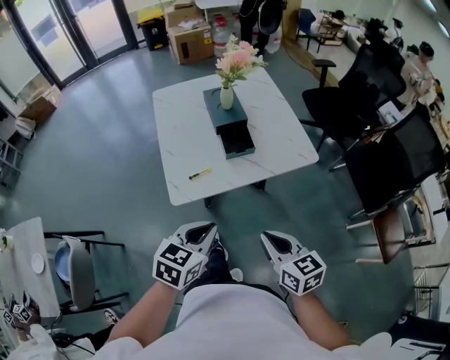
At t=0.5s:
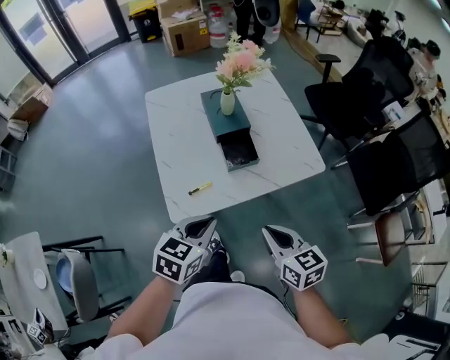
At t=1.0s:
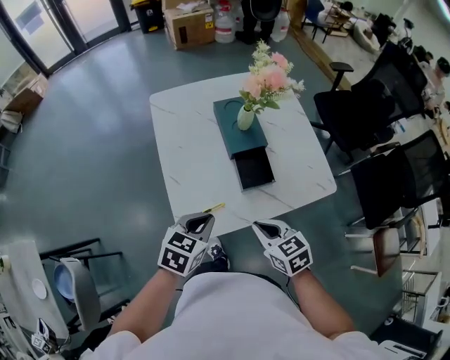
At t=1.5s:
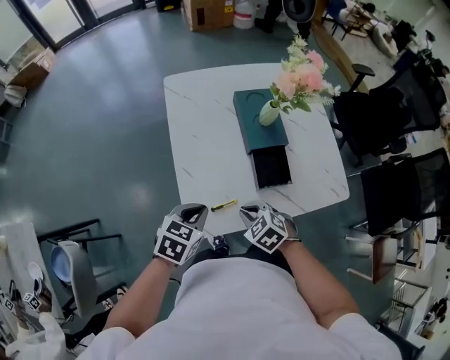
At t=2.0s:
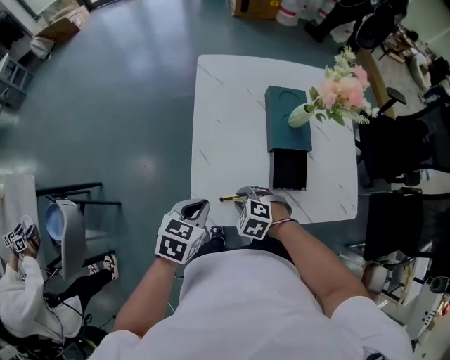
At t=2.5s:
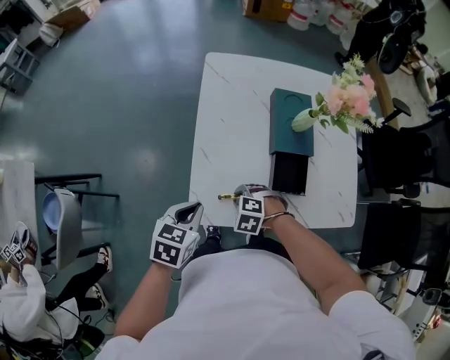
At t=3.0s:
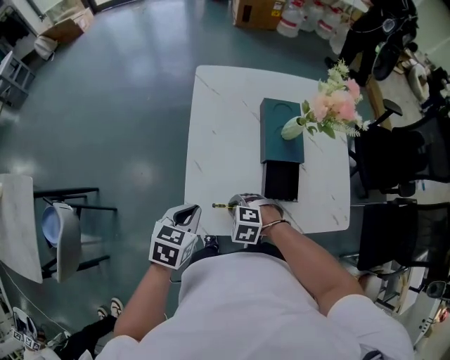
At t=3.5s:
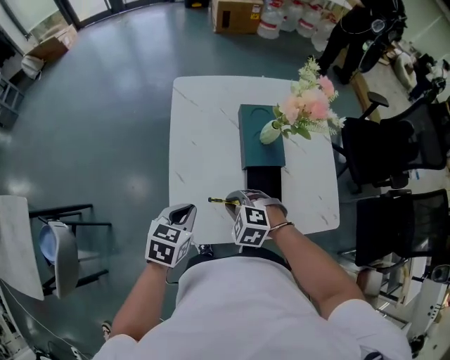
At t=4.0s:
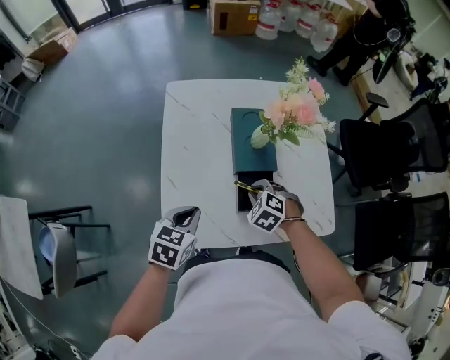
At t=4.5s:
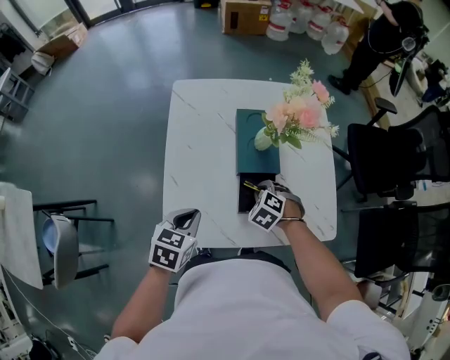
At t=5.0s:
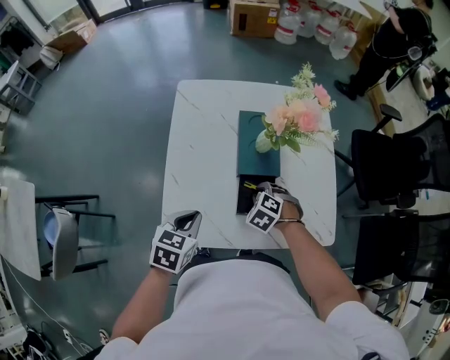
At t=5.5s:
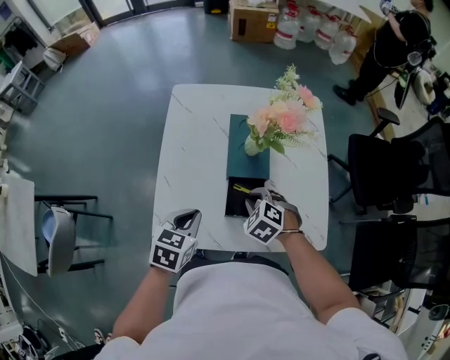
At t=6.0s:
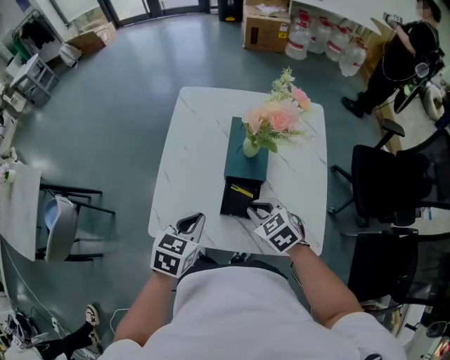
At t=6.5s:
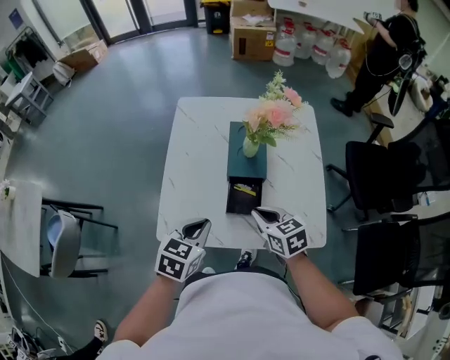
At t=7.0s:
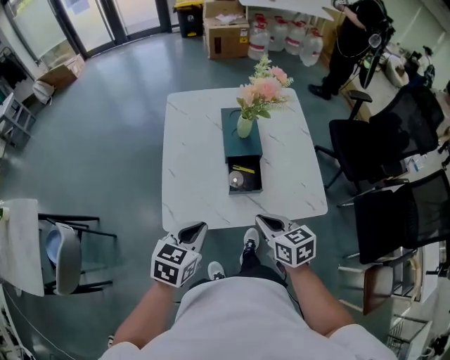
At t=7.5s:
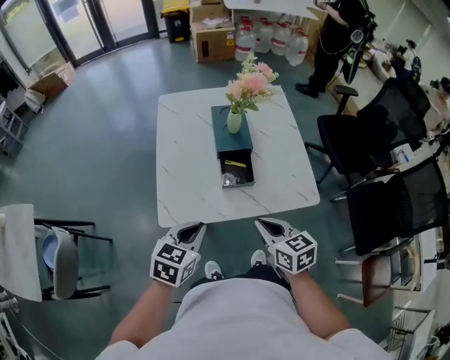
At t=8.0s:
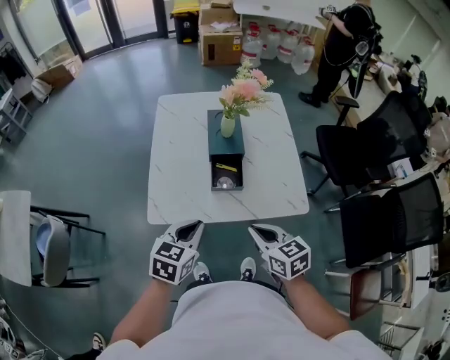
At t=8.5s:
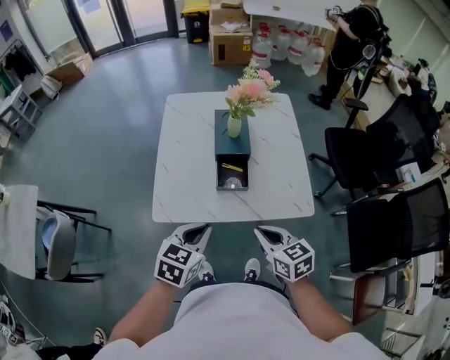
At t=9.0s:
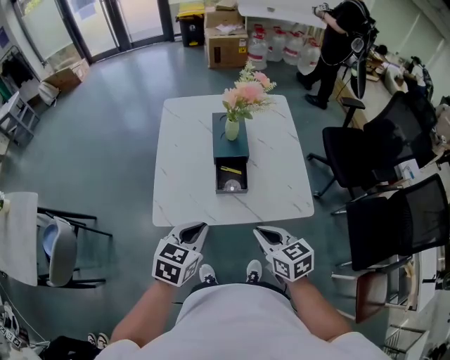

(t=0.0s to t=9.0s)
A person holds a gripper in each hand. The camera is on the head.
t=0.0s - t=2.0s: The right gripper changes place by roughly 40 cm, tilts its fingers about 50 degrees downward, and opens its fingers. The left gripper ends up roughly 30 cm from where it was, and swivels roughly 20 degrees.
t=2.0s - t=4.5s: The left gripper shifts by some 10 cm. Meanwhile the right gripper travels upward and back again, approximately 5 cm each way.
t=4.5s - t=7.0s: The right gripper moves backward and upward, about 25 cm, and points its fingers about 40 degrees further upward. Meanwhile the left gripper travels backward and upward by roughly 15 cm.
t=7.0s - t=9.0s: The left gripper is displaced to the right by roughly 5 cm. The right gripper moves backward, some 5 cm.

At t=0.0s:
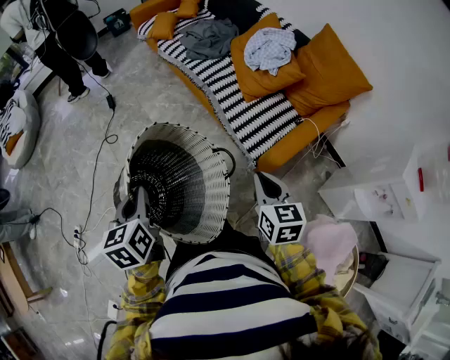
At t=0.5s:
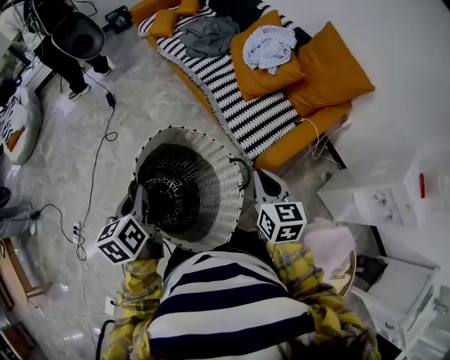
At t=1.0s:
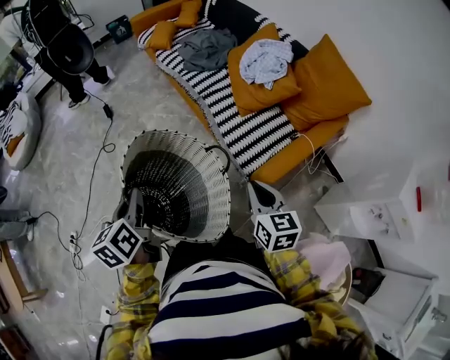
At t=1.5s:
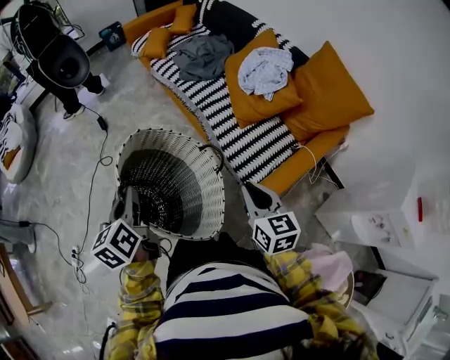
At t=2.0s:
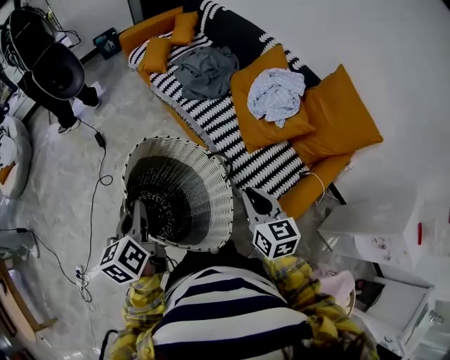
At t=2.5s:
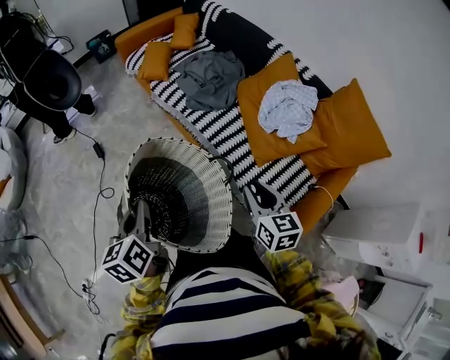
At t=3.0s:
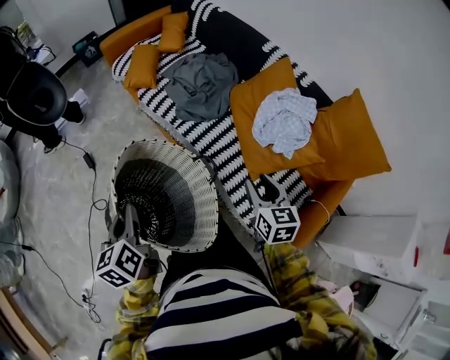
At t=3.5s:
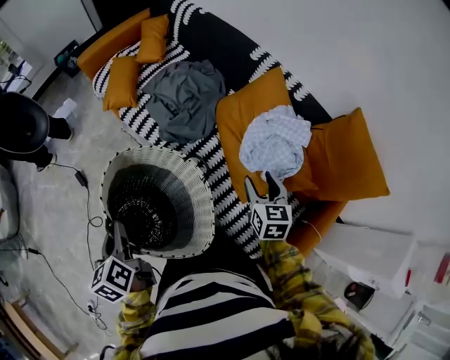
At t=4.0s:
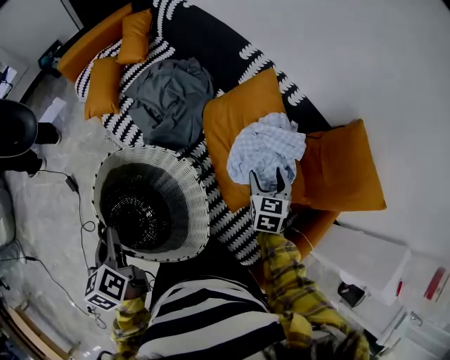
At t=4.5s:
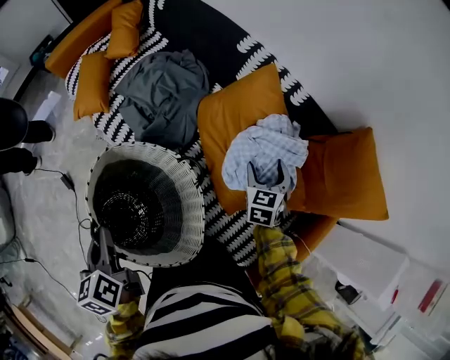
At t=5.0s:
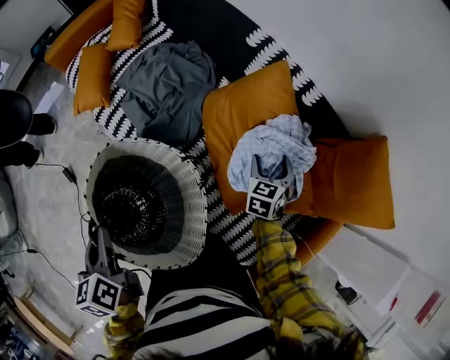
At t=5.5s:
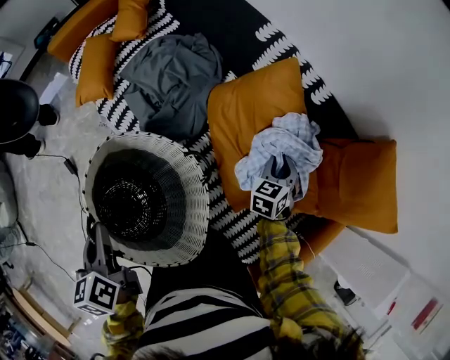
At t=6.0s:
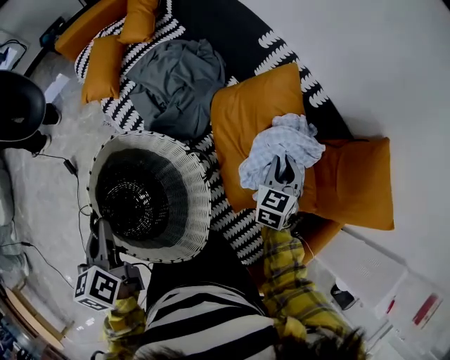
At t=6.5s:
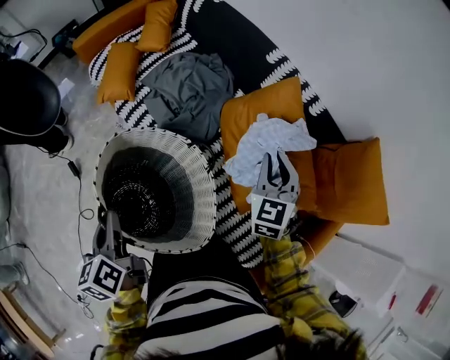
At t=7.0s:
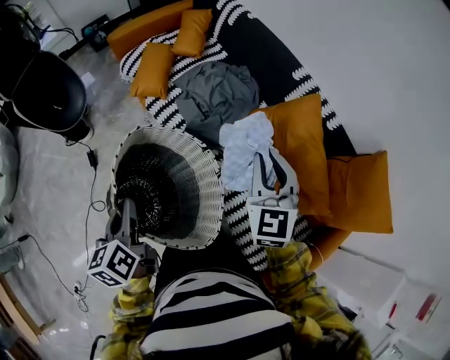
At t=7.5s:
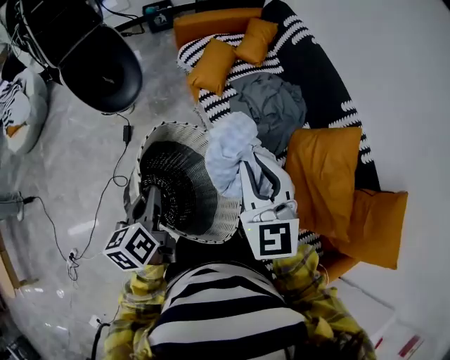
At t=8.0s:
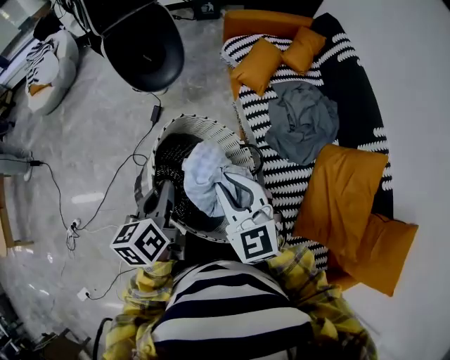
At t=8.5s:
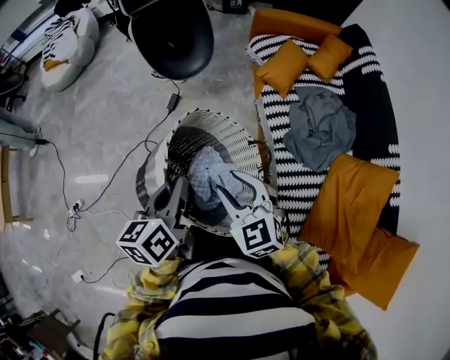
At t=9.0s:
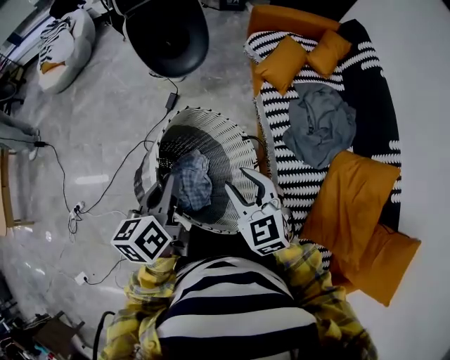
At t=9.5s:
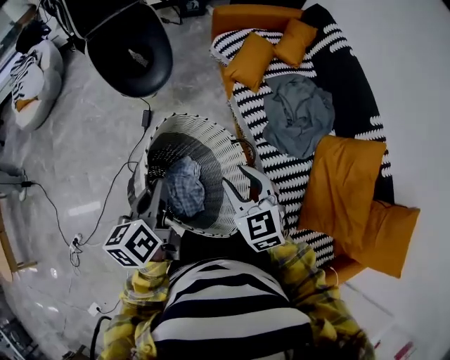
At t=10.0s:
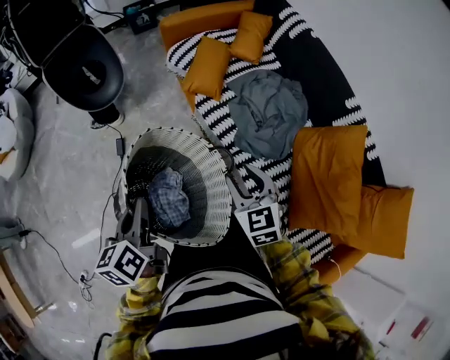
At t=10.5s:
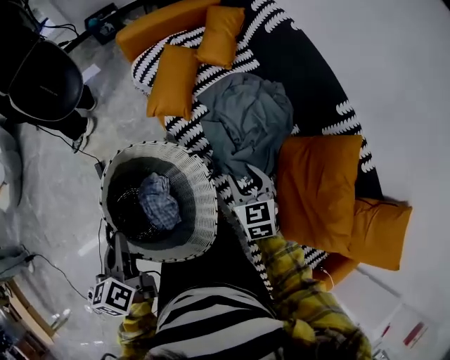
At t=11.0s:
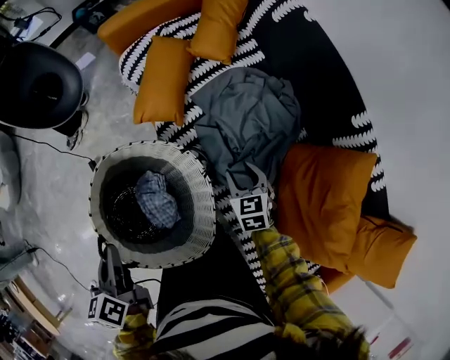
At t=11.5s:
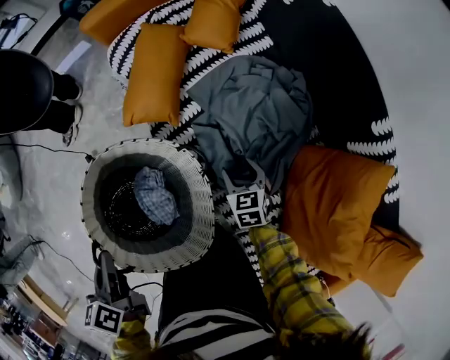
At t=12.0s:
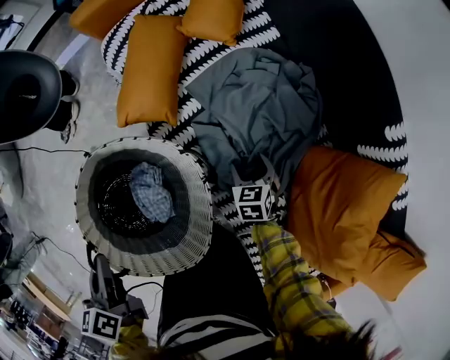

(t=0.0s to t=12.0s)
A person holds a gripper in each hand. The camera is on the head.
t=0.0s - t=2.0s: Both grippers move forward, approximately 20 cm.
t=2.0s - t=4.0s: The right gripper shifts approximately 40 cm forward and to the right, rotates roughly 40 degrees, and opens its fingers. Meanwhile the left gripper heads forward, covering some 35 cm.
t=4.0s - t=6.0s: The right gripper heads forward, covering roughly 5 cm, goes downward and returns, approximately 10 cm each way, and closes.
t=6.0s - t=8.0s: The right gripper moves some 60 cm, and changes its angle by roughly 80 degrees, while the left gripper moves approximately 20 cm, and turns by approximately 20 degrees.
t=8.0s - t=10.0s: The left gripper moves forward, about 10 cm. Meanwhile the right gripper heads to the right, downward and forward, covering about 15 cm, and changes its angle by some 30 degrees.
t=10.0s - t=12.0s: The right gripper travels downward, to the right and forward by approximately 40 cm, swivels about 30 degrees, and opens; the left gripper moves forward, to the right and downward, roughly 20 cm, and rotates some 20 degrees.

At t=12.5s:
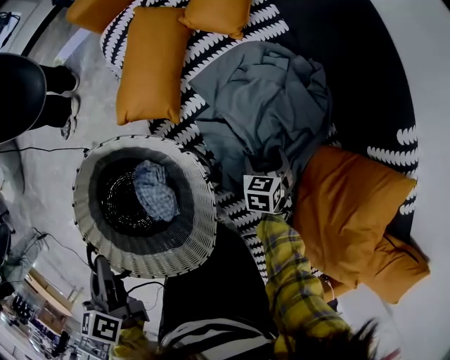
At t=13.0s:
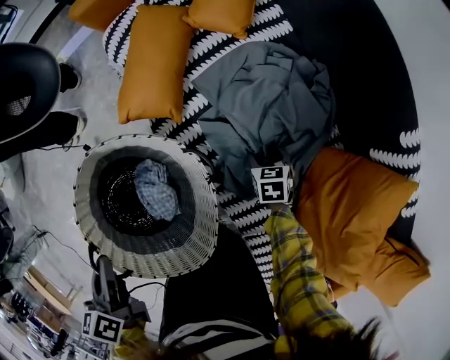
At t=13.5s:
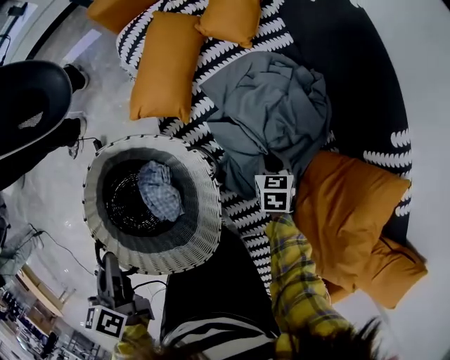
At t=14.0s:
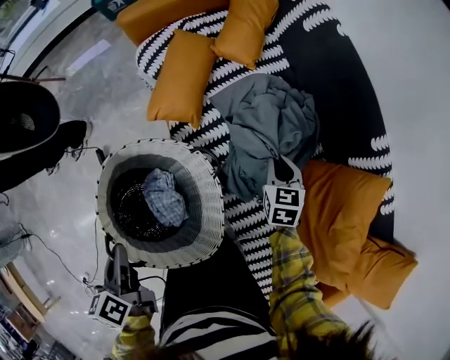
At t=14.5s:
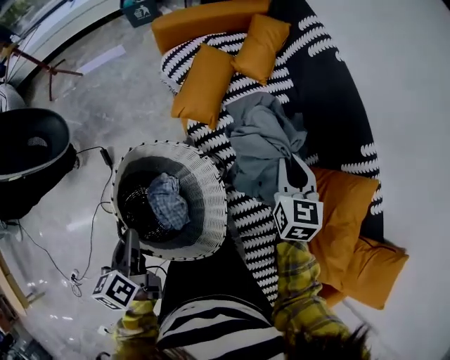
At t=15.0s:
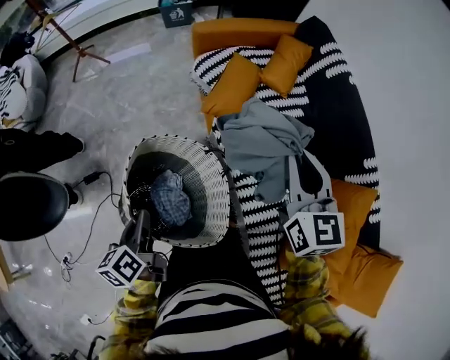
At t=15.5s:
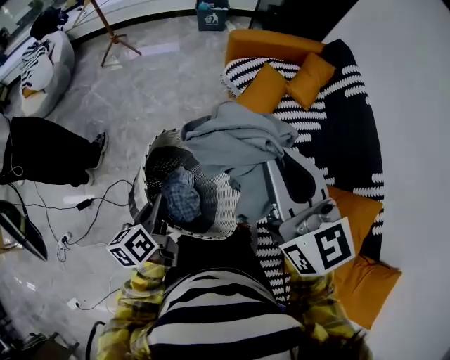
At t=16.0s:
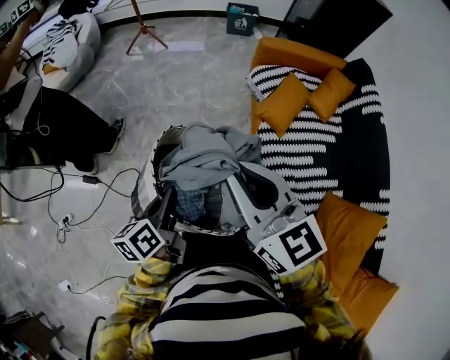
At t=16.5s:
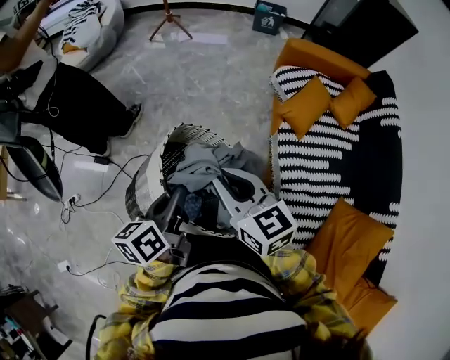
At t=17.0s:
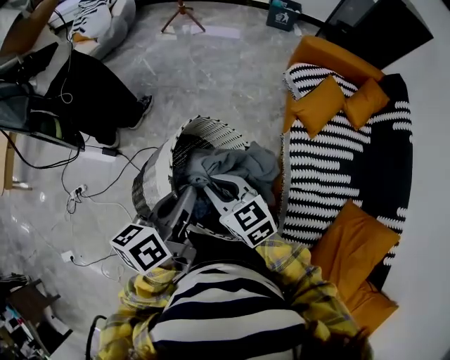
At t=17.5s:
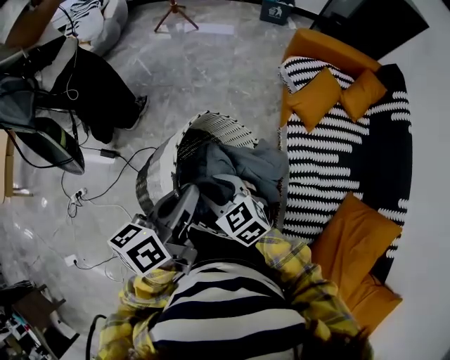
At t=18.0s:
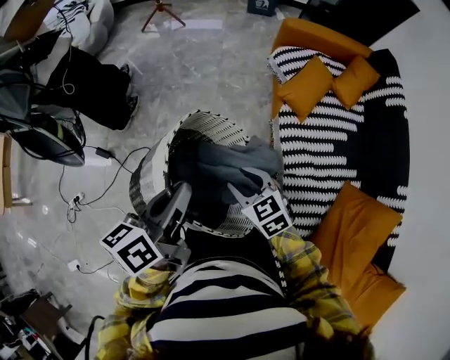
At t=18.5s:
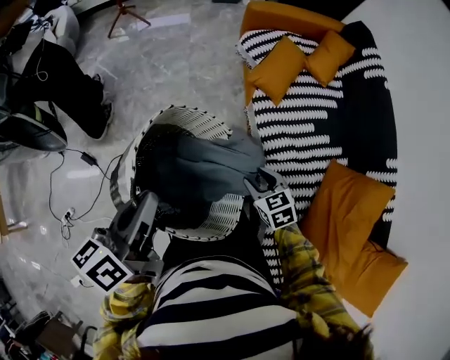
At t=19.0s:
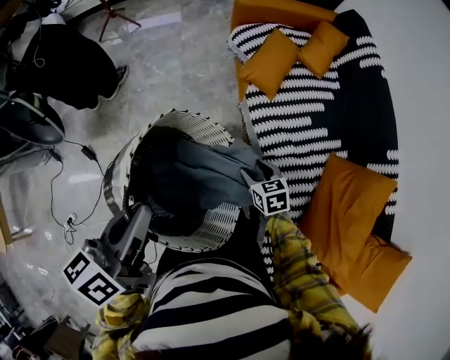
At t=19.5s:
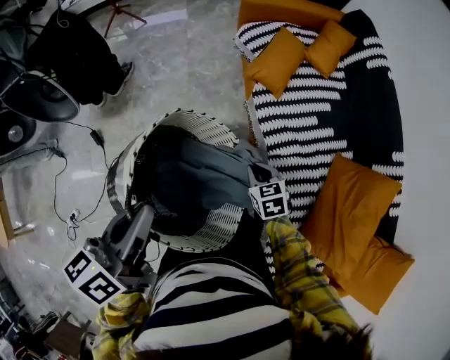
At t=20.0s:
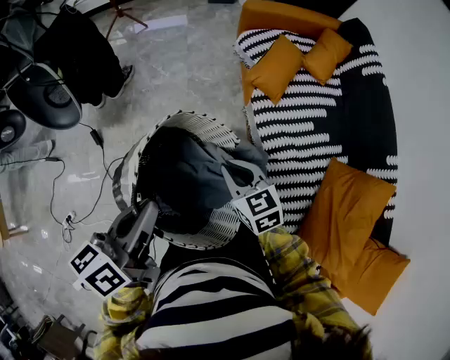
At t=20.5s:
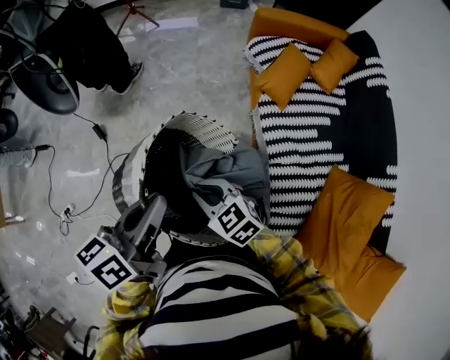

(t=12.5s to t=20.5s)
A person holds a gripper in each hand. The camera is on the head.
t=12.5s - t=14.5s: The right gripper shifts some 35 cm upward, points its fingers approximately 30 degrees further upward, and closes its fingers, while the left gripper moves backward, some 10 cm.
t=14.5s - t=16.5s: The left gripper ends up roughly 15 cm from where it was. The right gripper ends up approximately 50 cm from where it was, and swivels approximately 60 degrees.
t=16.5s - t=18.5s: The left gripper heads upward, covering approximately 10 cm. The right gripper goes some 25 cm downward, to the right and backward, tilts its fingers about 30 degrees downward, and opens up.
t=18.5s - t=20.5s: The right gripper goes approximately 20 cm to the left and upward, swivels approximately 30 degrees, and closes up.
